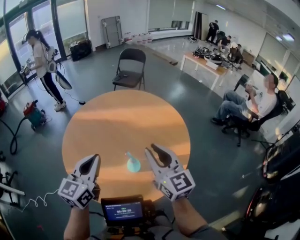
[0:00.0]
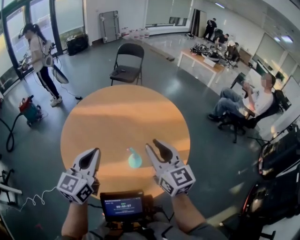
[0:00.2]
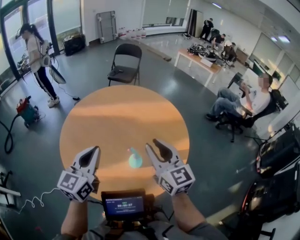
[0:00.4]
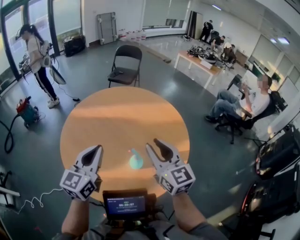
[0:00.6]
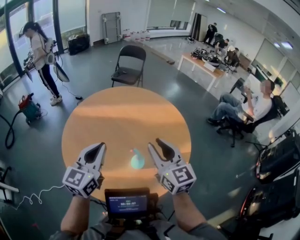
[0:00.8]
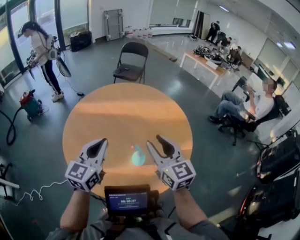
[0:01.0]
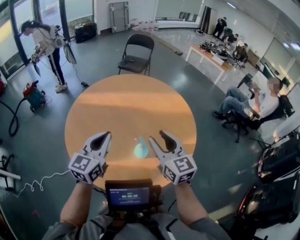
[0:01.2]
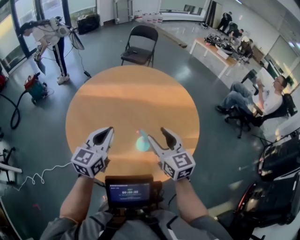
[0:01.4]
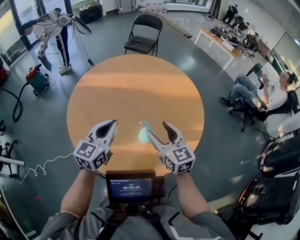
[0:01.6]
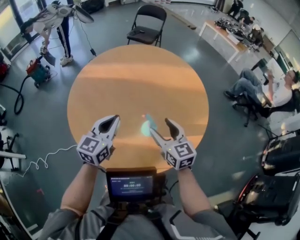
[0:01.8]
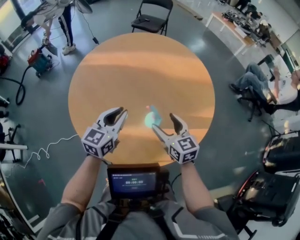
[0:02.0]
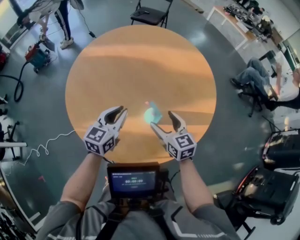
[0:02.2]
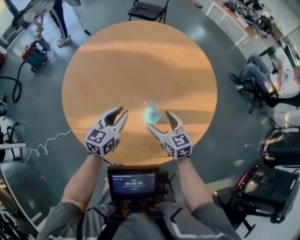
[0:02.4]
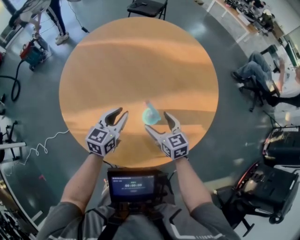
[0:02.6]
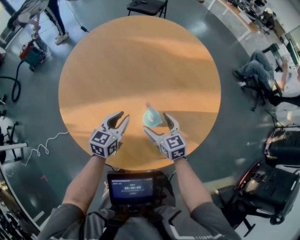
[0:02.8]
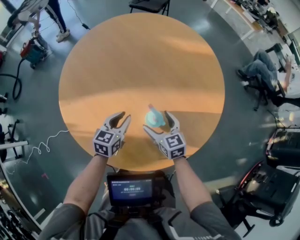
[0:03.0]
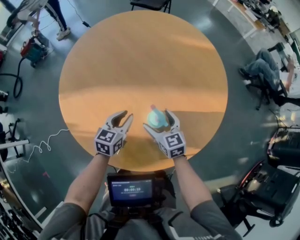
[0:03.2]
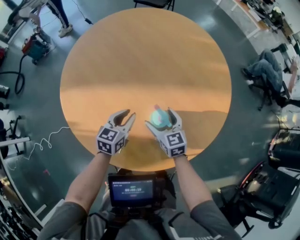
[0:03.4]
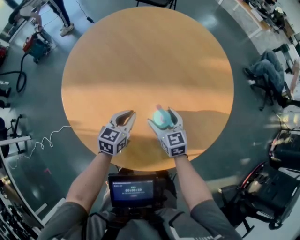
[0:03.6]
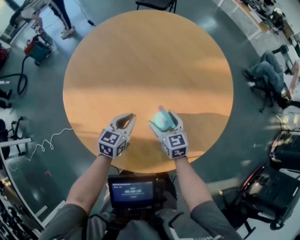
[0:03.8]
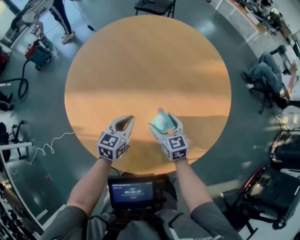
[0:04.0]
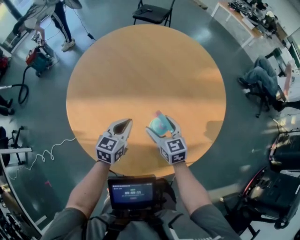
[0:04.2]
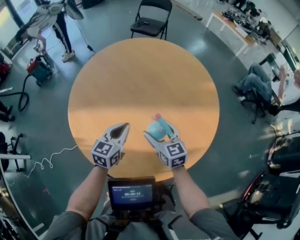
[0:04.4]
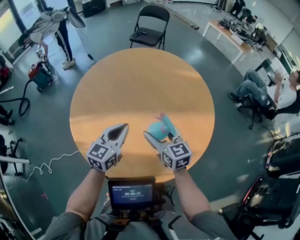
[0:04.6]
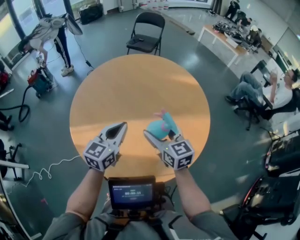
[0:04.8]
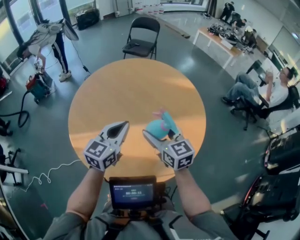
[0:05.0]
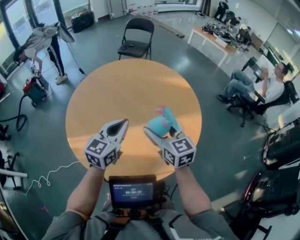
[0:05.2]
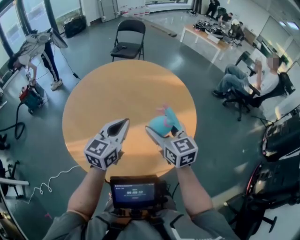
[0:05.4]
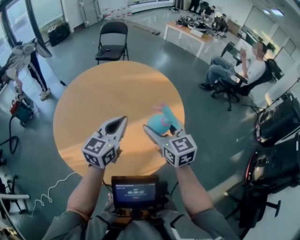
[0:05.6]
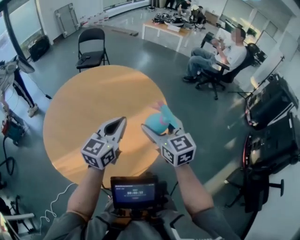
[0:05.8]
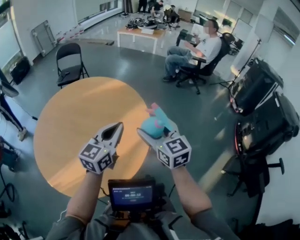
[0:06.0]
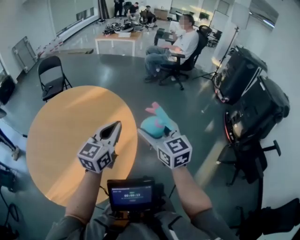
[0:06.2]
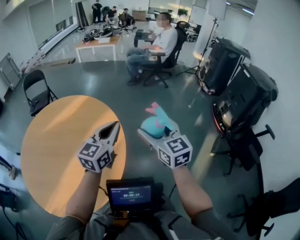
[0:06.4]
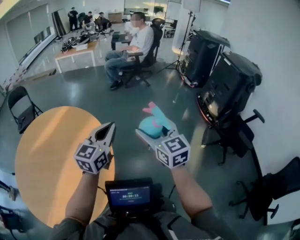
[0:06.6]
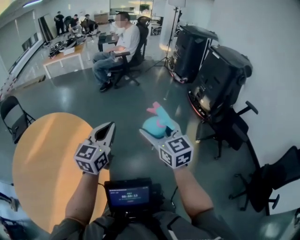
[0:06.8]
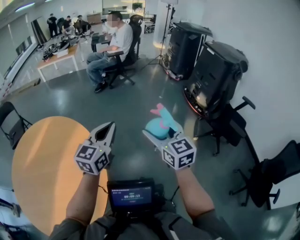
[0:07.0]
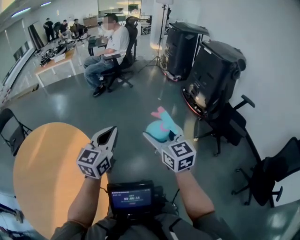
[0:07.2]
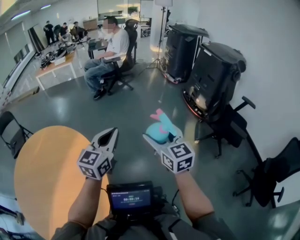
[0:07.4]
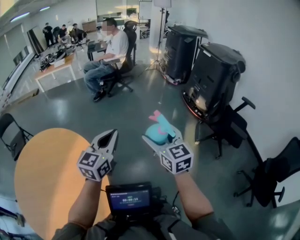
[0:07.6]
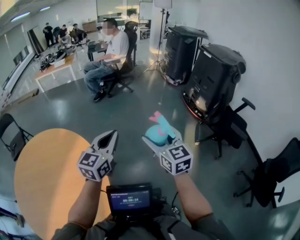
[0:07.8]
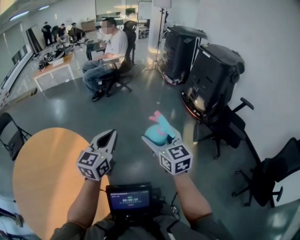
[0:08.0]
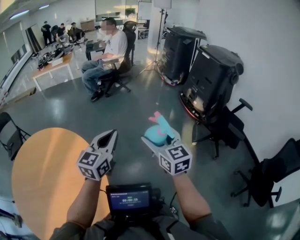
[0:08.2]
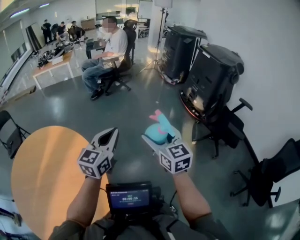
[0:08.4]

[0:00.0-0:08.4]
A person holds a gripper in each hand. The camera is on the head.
0:00.0 to 0:01.4: The two grippers go some 5 cm downward. The right gripper opens.
0:01.4 to 0:02.8: Both grippers travel together downward, approximately 20 cm. The right gripper swivels approximately 20 degrees, and opens. Meanwhile the left gripper opens.
0:02.8 to 0:04.2: The left gripper closes its fingers.
0:04.2 to 0:05.6: Both grippers move upward and to the right, roughly 25 cm. The left gripper changes its angle by roughly 30 degrees. Meanwhile the right gripper swivels approximately 20 degrees.
0:05.6 to 0:07.0: The two grippers travel together, about 40 cm. The right gripper changes its angle by some 50 degrees; the left gripper turns by some 50 degrees.
0:07.0 to 0:08.4: There are only small adjustments of the grippers.

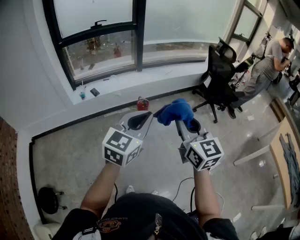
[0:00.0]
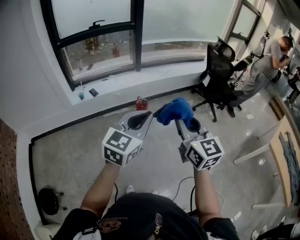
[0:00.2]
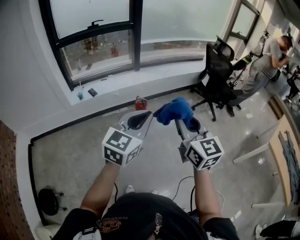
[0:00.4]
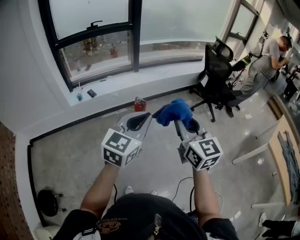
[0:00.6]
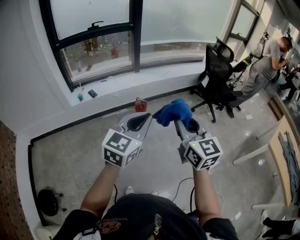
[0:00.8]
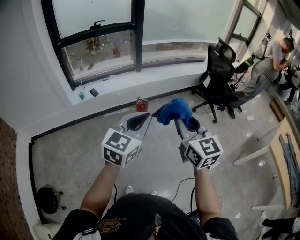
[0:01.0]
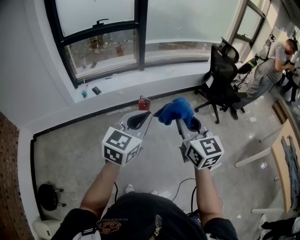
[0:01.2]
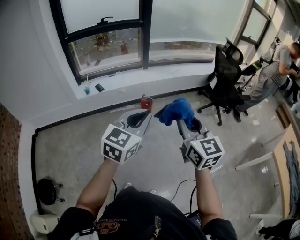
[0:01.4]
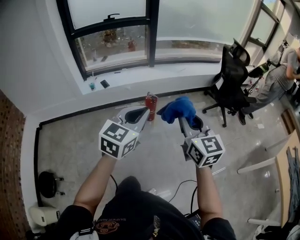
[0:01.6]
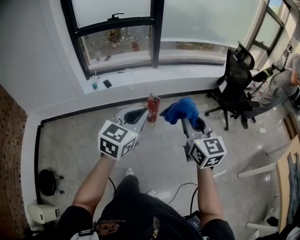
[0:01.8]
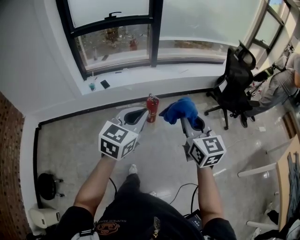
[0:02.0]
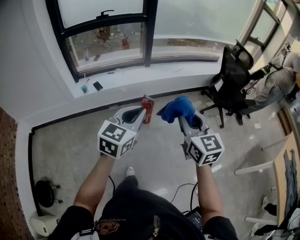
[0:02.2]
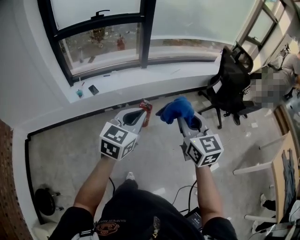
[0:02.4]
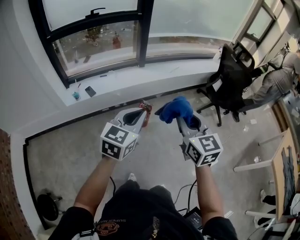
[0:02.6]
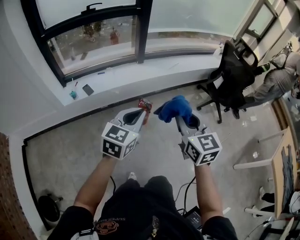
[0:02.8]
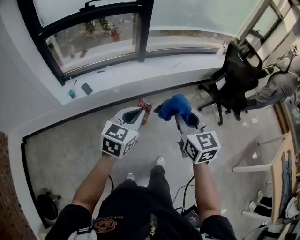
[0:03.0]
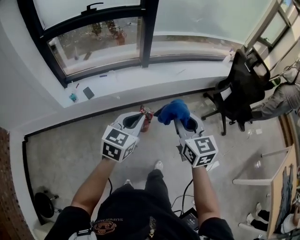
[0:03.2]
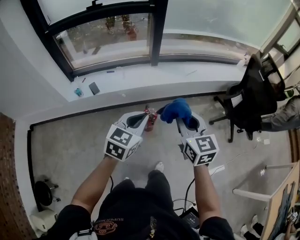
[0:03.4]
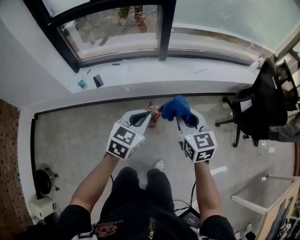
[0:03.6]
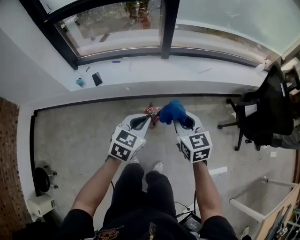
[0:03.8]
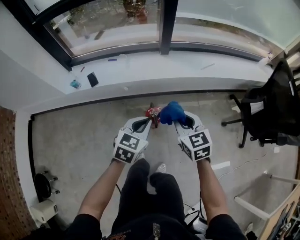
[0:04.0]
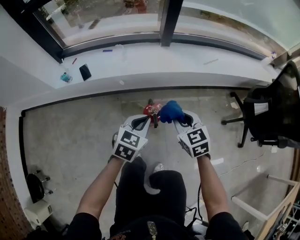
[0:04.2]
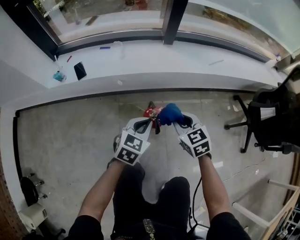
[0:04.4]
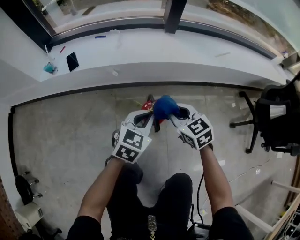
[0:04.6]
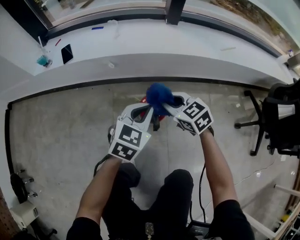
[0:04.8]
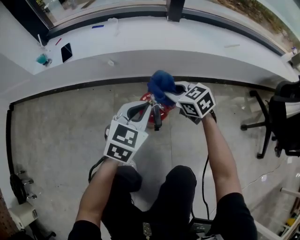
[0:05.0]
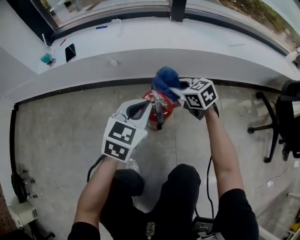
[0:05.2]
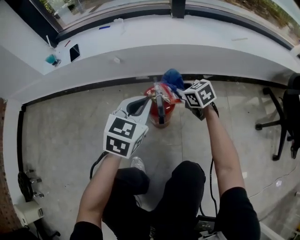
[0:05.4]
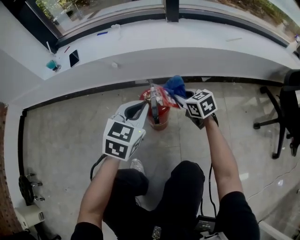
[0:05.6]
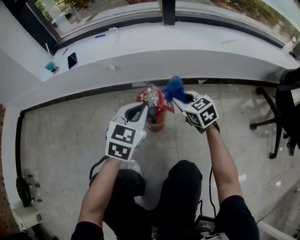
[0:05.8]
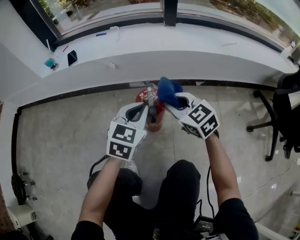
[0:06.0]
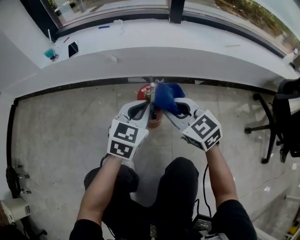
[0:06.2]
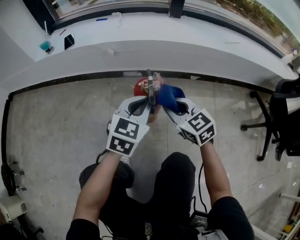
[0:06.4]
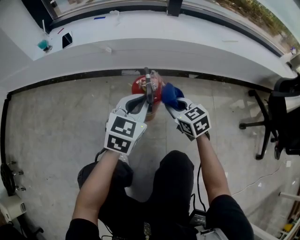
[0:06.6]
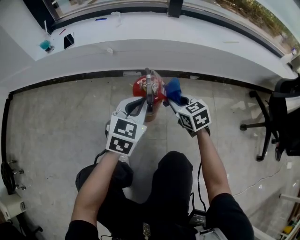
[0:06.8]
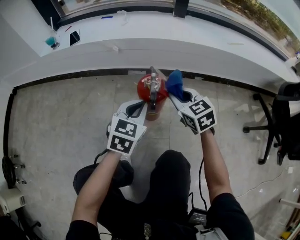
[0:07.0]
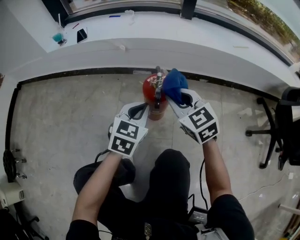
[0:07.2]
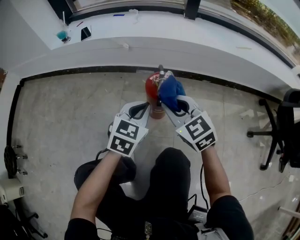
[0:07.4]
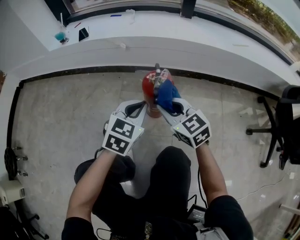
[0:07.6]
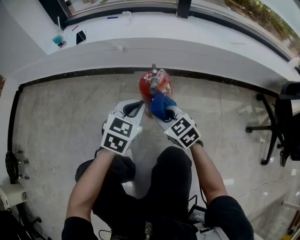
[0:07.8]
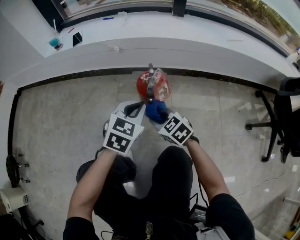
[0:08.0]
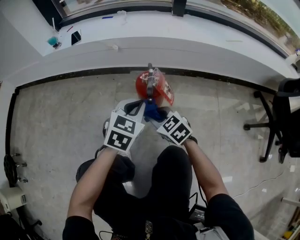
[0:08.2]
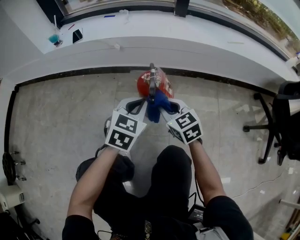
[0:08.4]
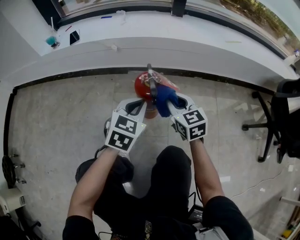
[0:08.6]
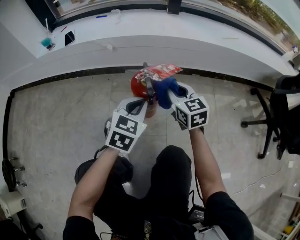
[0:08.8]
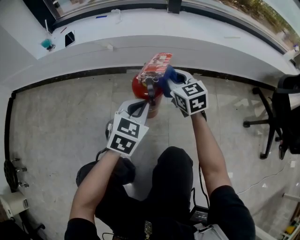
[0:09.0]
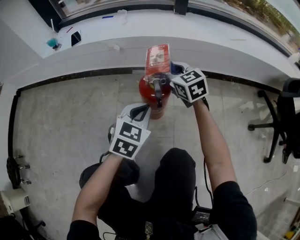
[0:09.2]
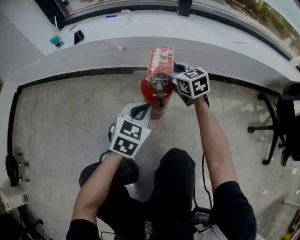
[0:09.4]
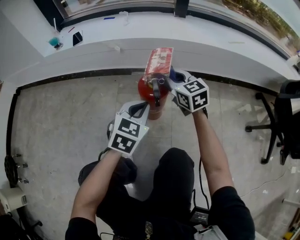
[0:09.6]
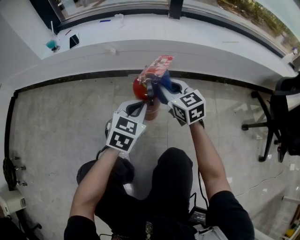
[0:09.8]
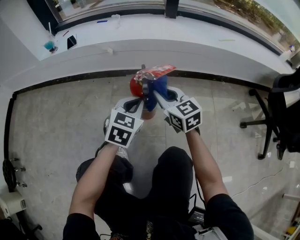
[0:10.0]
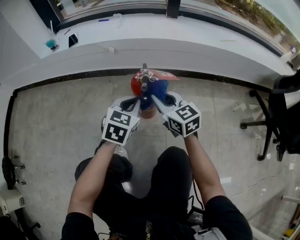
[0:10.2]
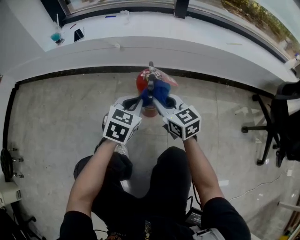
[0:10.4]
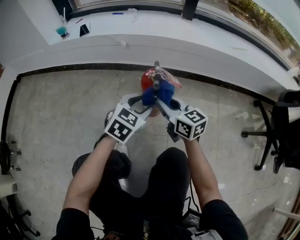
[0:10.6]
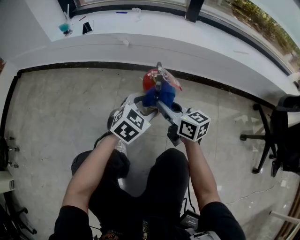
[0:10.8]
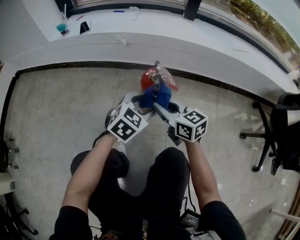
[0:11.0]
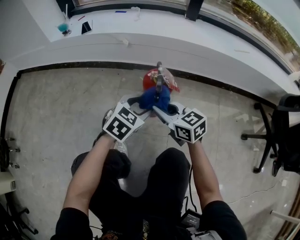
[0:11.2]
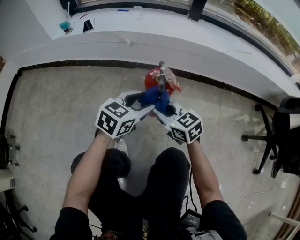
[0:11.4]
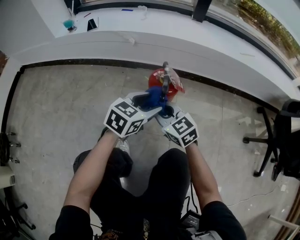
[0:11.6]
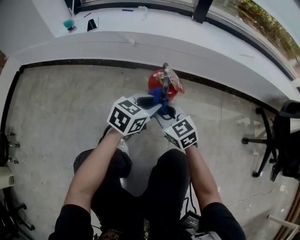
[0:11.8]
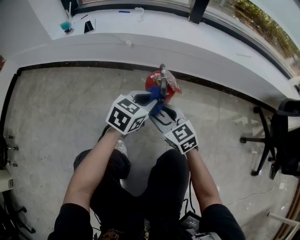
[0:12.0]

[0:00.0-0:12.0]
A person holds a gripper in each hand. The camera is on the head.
0:00.0 to 0:01.6: The grippers make only small movements.
0:01.6 to 0:03.0: The two grippers go about 30 cm forward.
0:03.0 to 0:04.4: The two grippers go about 50 cm downward and forward. The right gripper changes its angle by approximately 40 degrees.
0:04.4 to 0:06.0: The grippers both shift downward by about 15 cm. The right gripper changes its angle by some 20 degrees.
0:06.0 to 0:07.6: The left gripper ends up about 5 cm from where it was, while the right gripper heads backward and to the left, covering approximately 10 cm, and moves approximately 10 cm downward and comes back.
0:07.6 to 0:09.0: The right gripper goes roughly 15 cm forward and to the right.
0:09.0 to 0:10.4: The right gripper is displaced backward and to the left by about 10 cm.
0:10.4 to 0:12.0: The left gripper opens, then closes once more, while the right gripper shifts by some 5 cm, and opens its fingers.

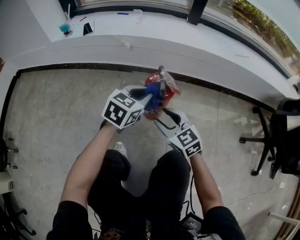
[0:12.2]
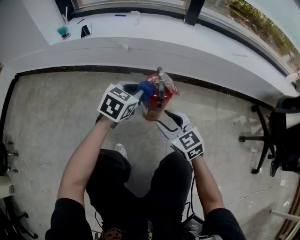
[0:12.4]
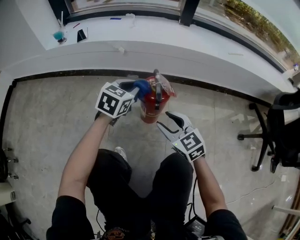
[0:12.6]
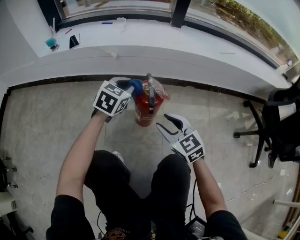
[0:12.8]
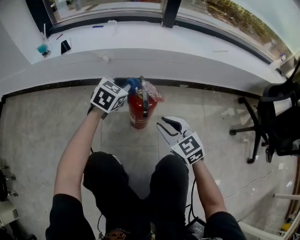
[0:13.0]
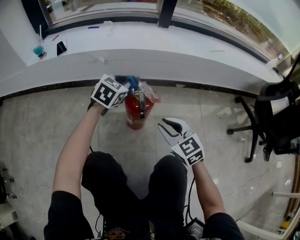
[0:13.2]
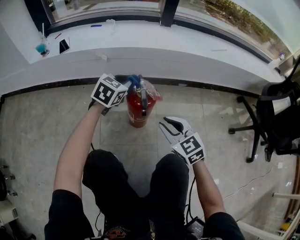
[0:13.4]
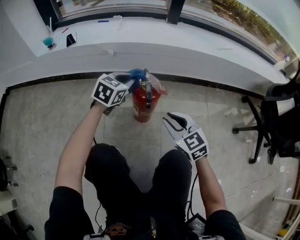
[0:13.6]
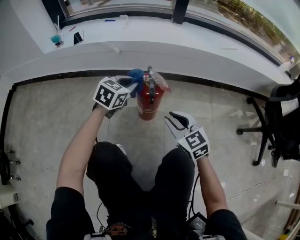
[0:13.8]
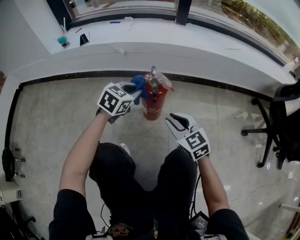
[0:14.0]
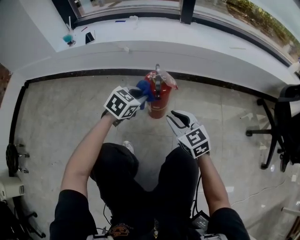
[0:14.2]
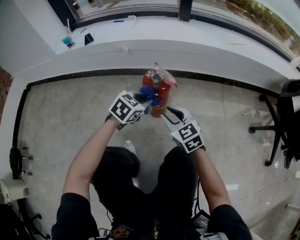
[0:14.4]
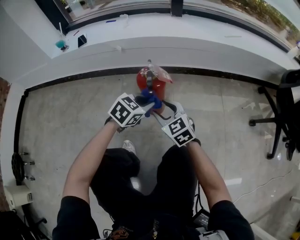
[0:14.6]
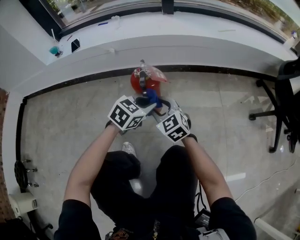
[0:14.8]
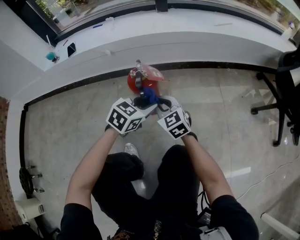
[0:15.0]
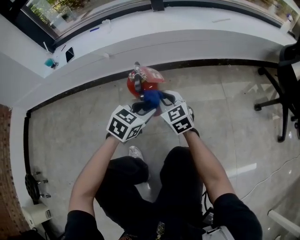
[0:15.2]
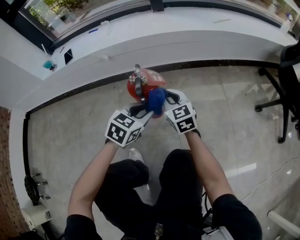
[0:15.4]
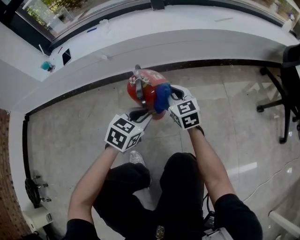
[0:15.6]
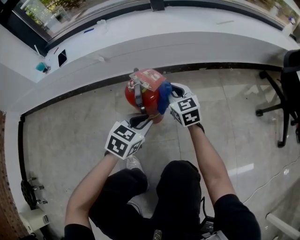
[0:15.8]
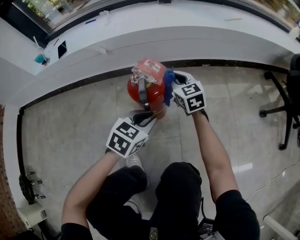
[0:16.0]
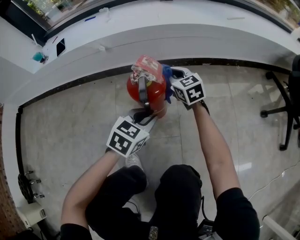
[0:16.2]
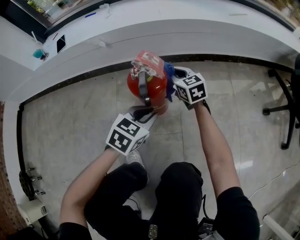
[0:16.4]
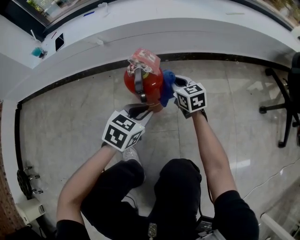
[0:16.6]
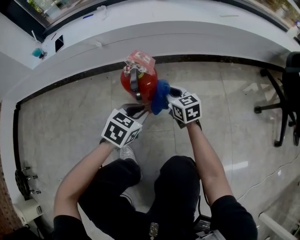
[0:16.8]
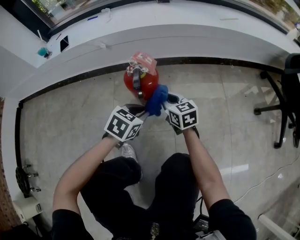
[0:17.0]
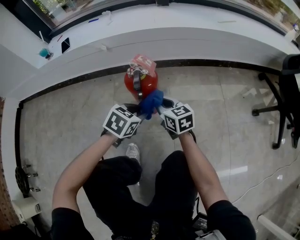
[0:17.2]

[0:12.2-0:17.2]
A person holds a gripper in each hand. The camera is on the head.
0:12.2 to 0:13.8: The right gripper shifts approximately 5 cm to the right, and closes up, while the left gripper goes some 5 cm forward.
0:13.8 to 0:15.6: The right gripper moves forward and downward, approximately 15 cm, turns by some 20 degrees, and opens, then closes once more. The left gripper heads backward, to the right and downward, covering some 15 cm.
0:15.6 to 0:17.2: The right gripper moves backward, about 5 cm, and changes its angle by some 20 degrees.
